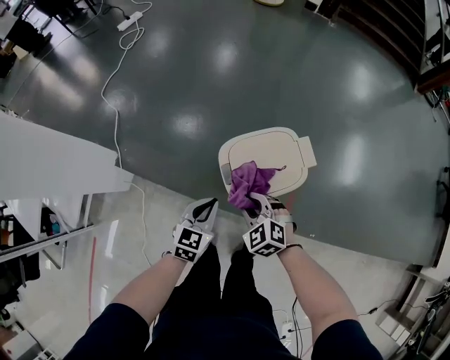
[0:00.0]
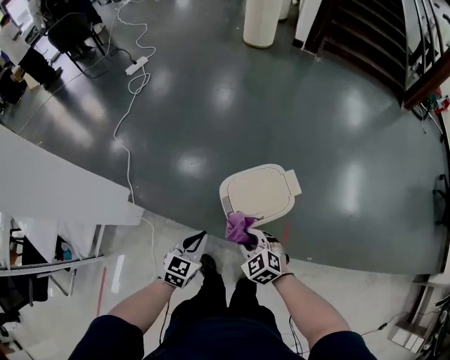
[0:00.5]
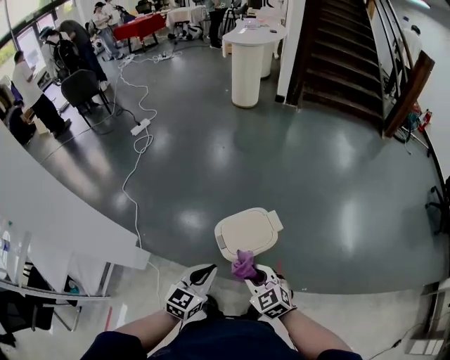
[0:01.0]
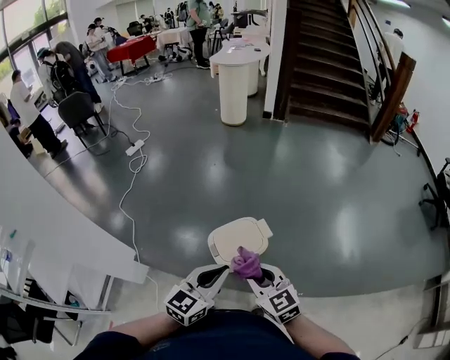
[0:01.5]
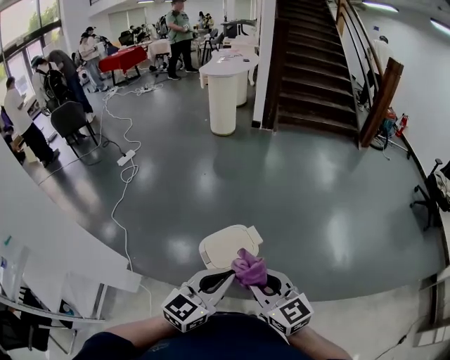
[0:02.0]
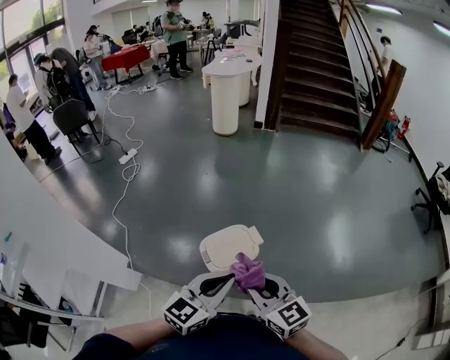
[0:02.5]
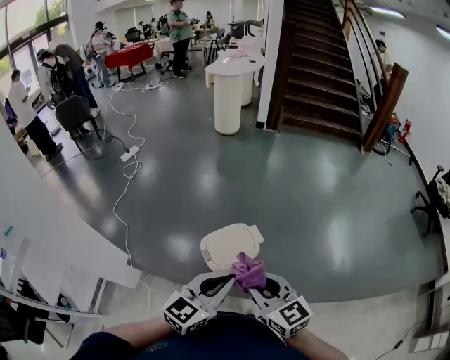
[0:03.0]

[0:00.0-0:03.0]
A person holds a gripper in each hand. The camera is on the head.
0:00.0 to 0:01.5: The grippers both shift upward by roughly 35 cm. The left gripper rotates approximately 30 degrees; the right gripper changes its angle by roughly 40 degrees.
0:01.5 to 0:03.0: The left gripper ends up some 5 cm from where it was. The right gripper goes roughly 5 cm upward.

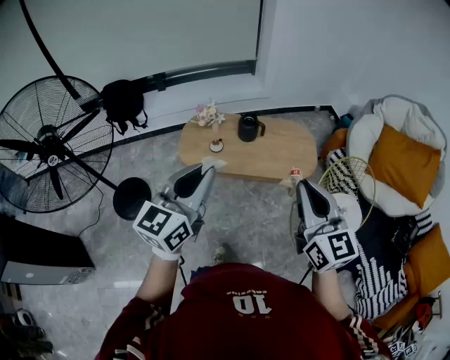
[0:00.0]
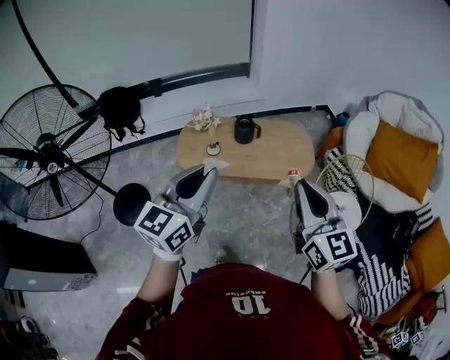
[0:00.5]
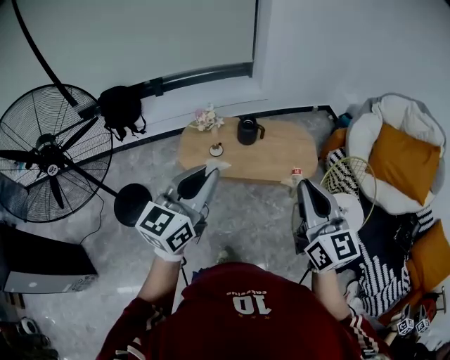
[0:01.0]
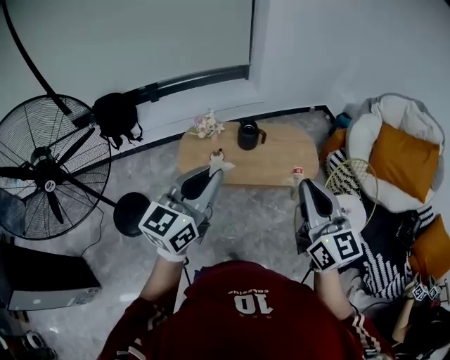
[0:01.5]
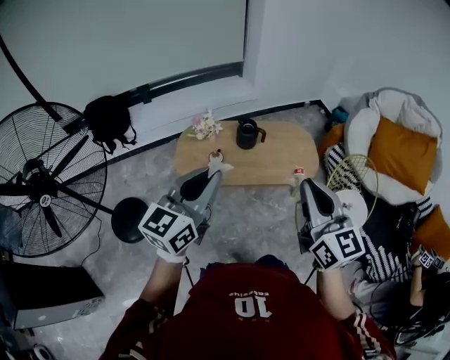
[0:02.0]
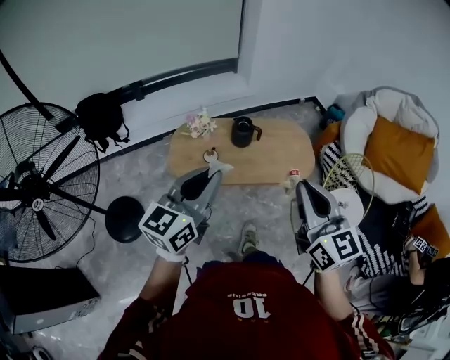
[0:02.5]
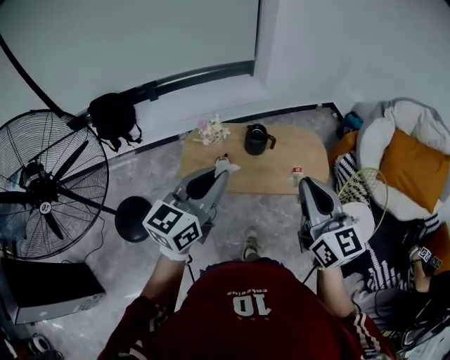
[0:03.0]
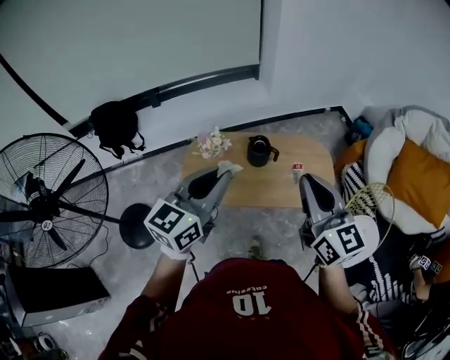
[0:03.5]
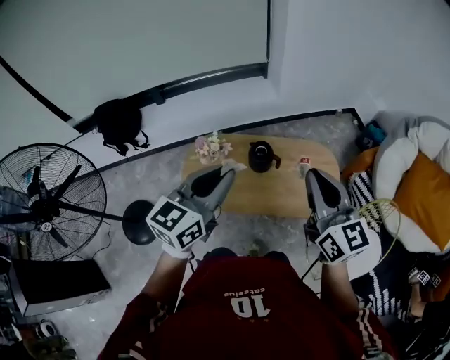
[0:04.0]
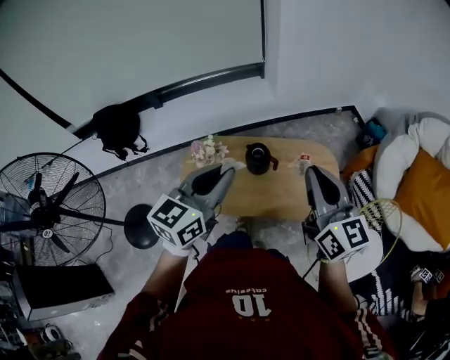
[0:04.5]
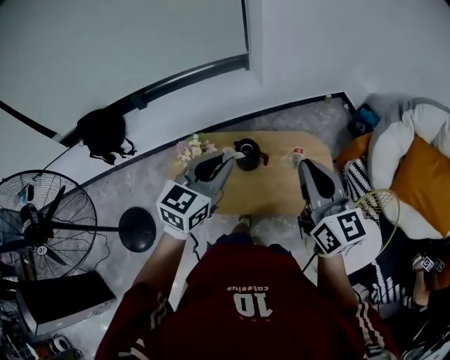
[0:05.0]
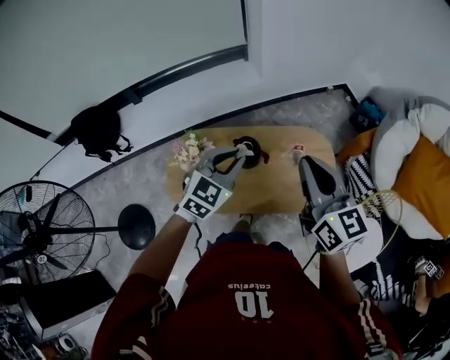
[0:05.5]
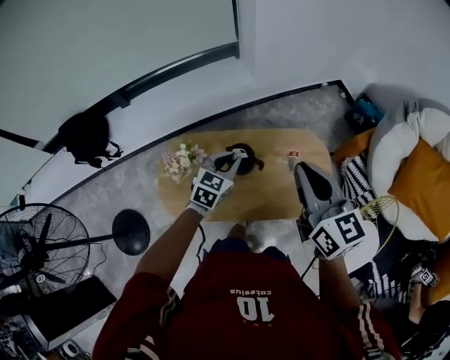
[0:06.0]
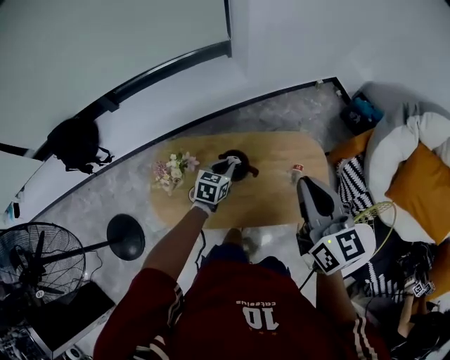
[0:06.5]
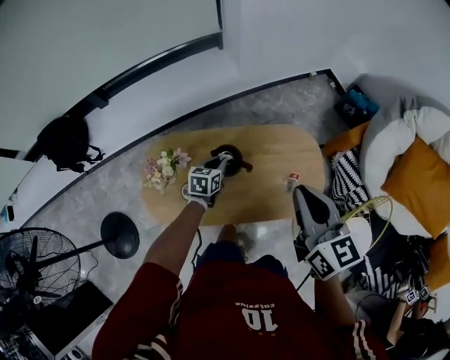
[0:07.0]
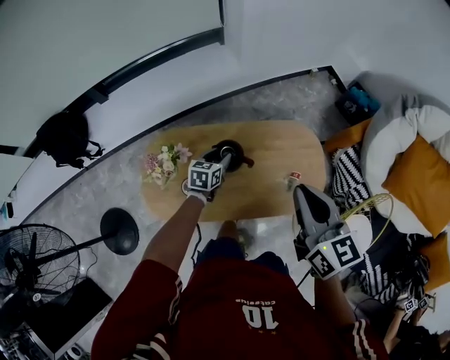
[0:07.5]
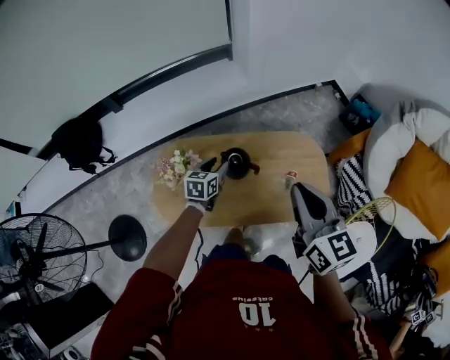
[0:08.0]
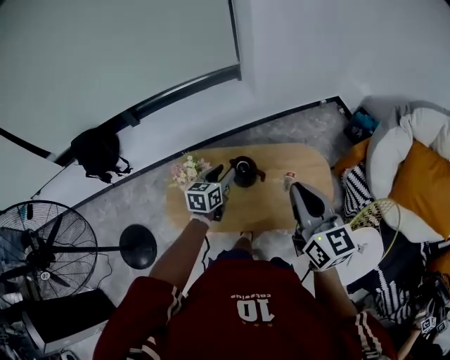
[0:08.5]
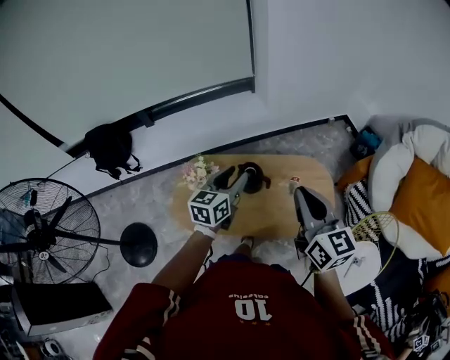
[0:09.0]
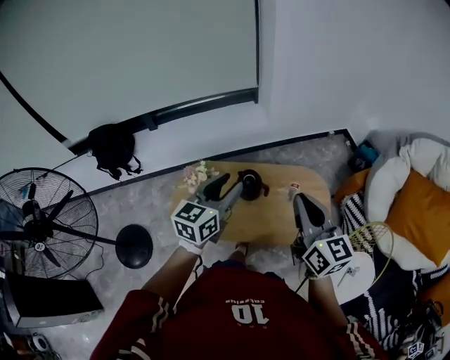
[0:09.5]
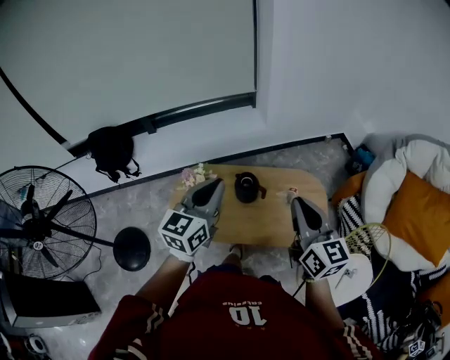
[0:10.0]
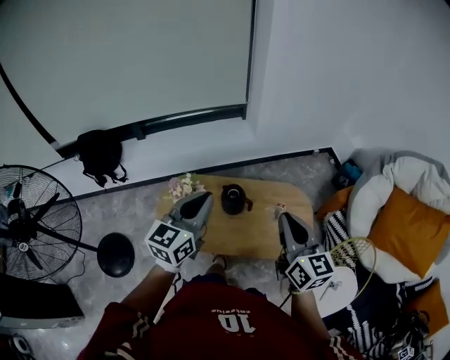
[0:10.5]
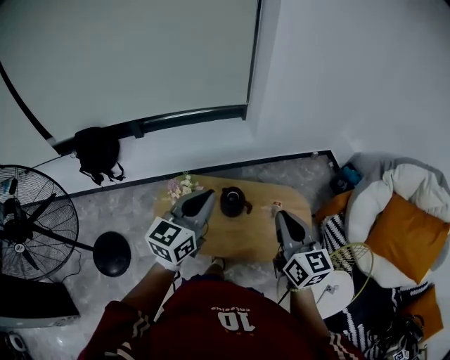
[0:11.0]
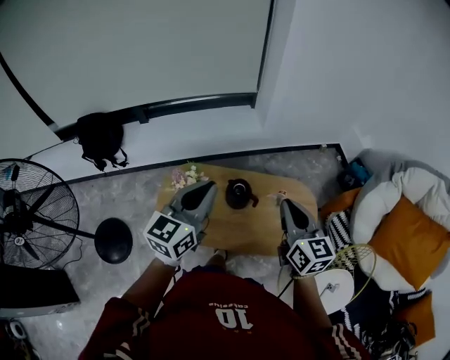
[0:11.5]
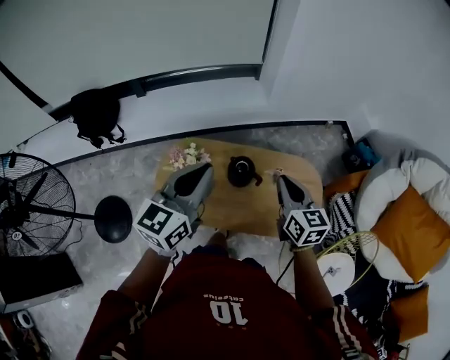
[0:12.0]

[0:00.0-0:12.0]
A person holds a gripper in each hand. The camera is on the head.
0:00.0 to 0:02.0: The right gripper travels to the left and forward by some 10 cm; the left gripper shifts some 10 cm forward and to the left.
0:02.0 to 0:04.0: The grippers both shift forward by roughly 30 cm.
0:04.0 to 0:06.0: The left gripper is displaced downward and forward by roughly 35 cm, and swivels some 30 degrees. Meanwhile the right gripper goes roughly 15 cm forward and downward.
0:06.0 to 0:08.0: The left gripper shifts roughly 10 cm downward, turns by roughly 30 degrees, and opens.
0:08.0 to 0:10.0: The left gripper travels upward and backward by about 40 cm, tips its fingers upward by some 30 degrees, and closes. Meanwhile the right gripper heads backward and upward, covering roughly 10 cm.
0:10.0 to 0:12.0: The right gripper is displaced forward and downward by about 20 cm. The left gripper is displaced forward by approximately 5 cm.

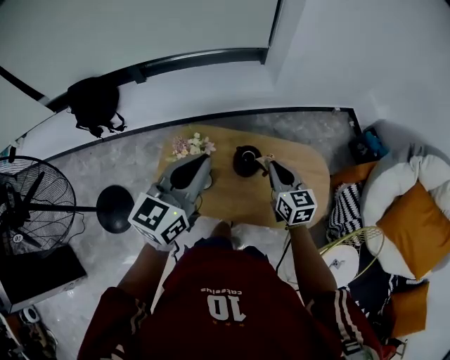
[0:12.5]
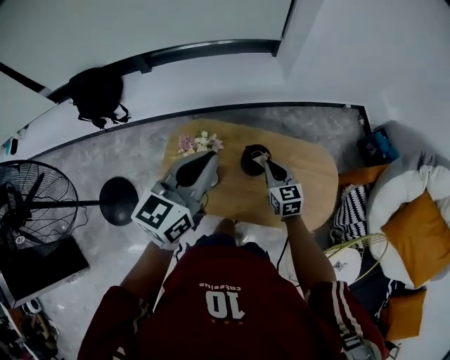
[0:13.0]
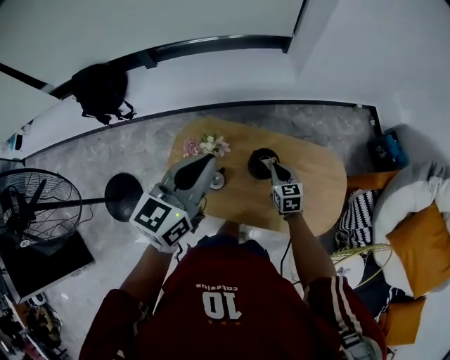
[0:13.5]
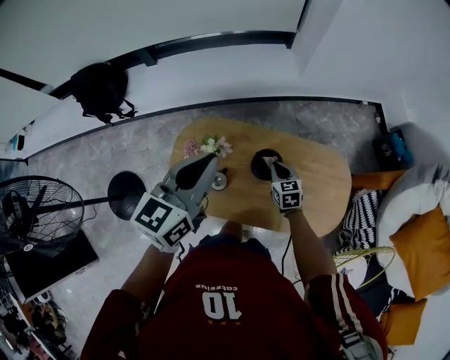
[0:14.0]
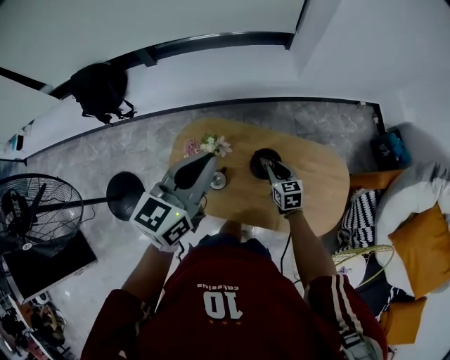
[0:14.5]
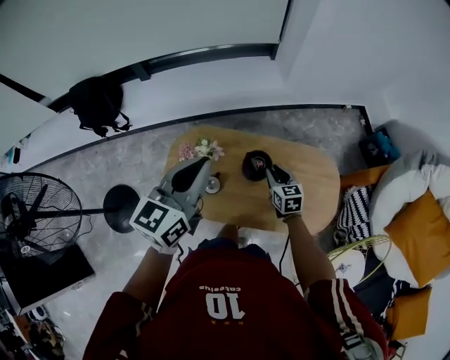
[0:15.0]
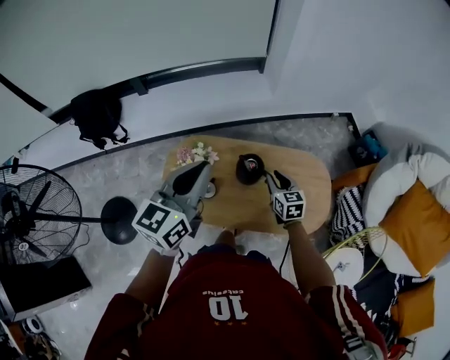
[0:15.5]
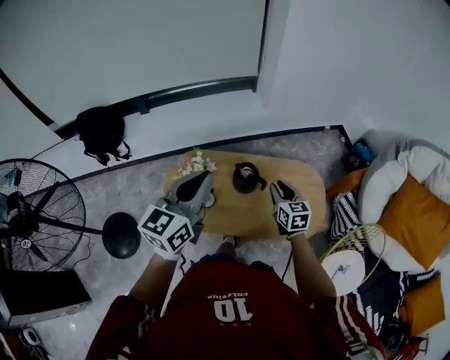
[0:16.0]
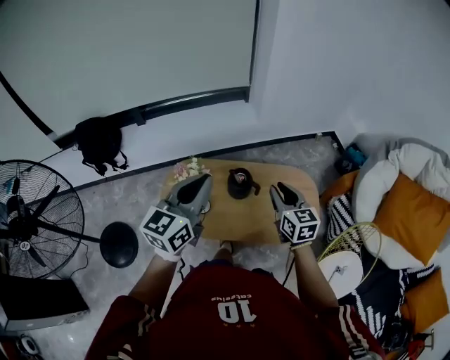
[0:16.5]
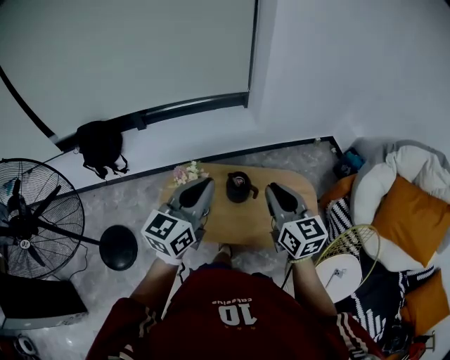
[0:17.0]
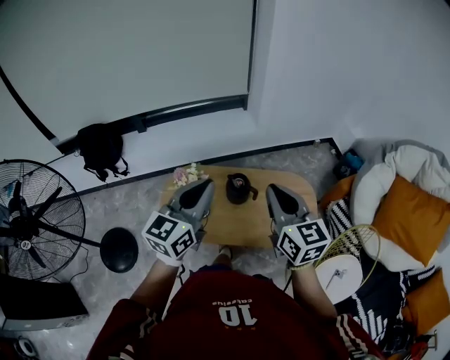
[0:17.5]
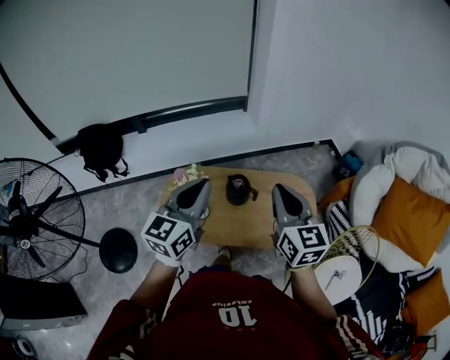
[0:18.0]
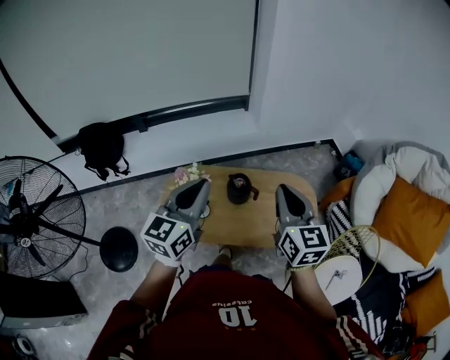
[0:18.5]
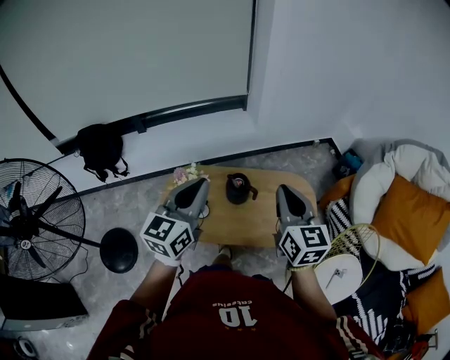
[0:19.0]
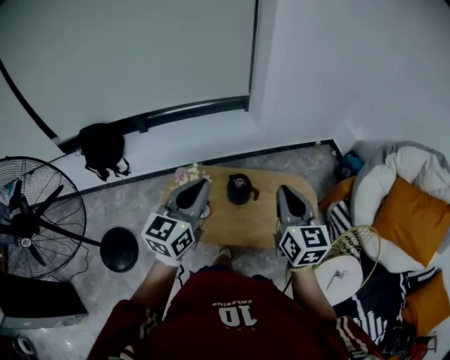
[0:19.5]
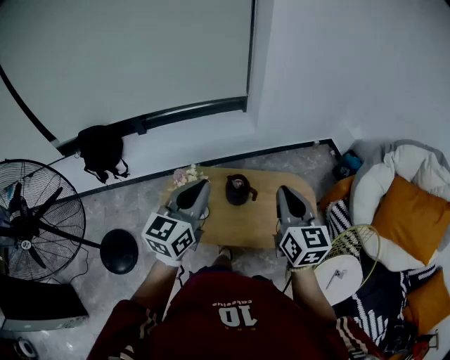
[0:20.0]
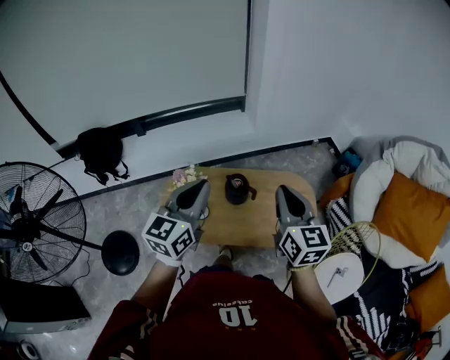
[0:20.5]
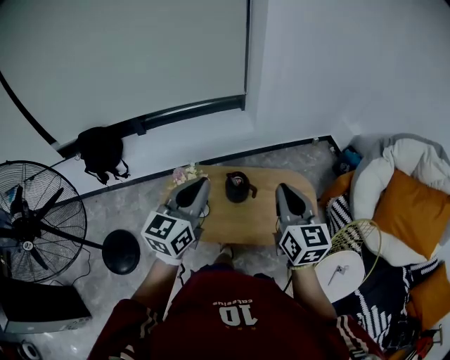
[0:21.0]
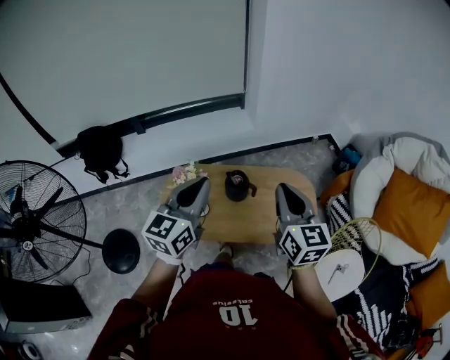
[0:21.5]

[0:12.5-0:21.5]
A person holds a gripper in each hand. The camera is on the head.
0:12.5 to 0:14.5: The left gripper heads forward and downward, covering roughly 10 cm. The right gripper heads downward, covering about 20 cm, rotates some 20 degrees, and opens its fingers.
0:14.5 to 0:17.0: The left gripper is displaced backward, upward and to the right by some 25 cm. Meanwhile the right gripper goes roughly 50 cm upward and backward, and tilts its fingers roughly 30 degrees upward.
0:17.0 to 0:21.5: The grippers stay close to where they were, moving slightly.

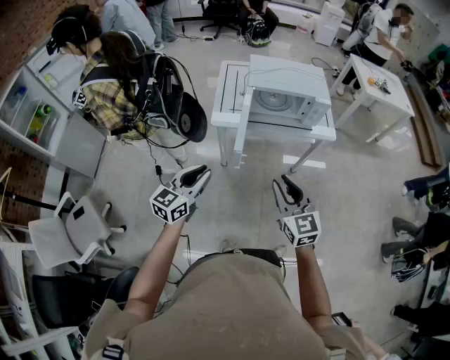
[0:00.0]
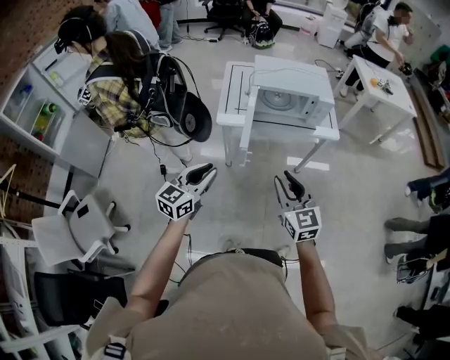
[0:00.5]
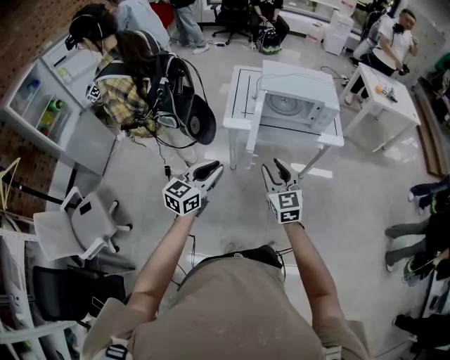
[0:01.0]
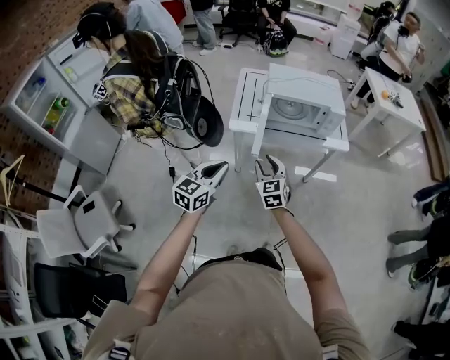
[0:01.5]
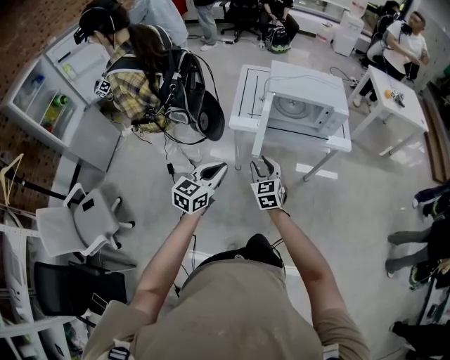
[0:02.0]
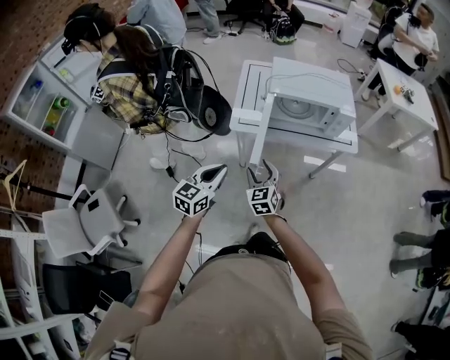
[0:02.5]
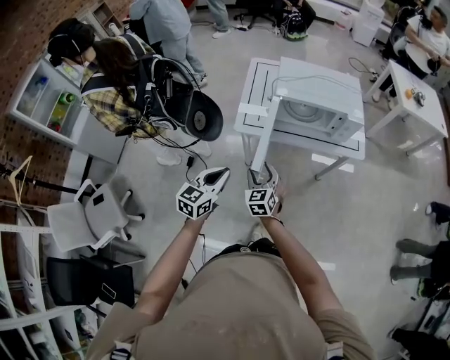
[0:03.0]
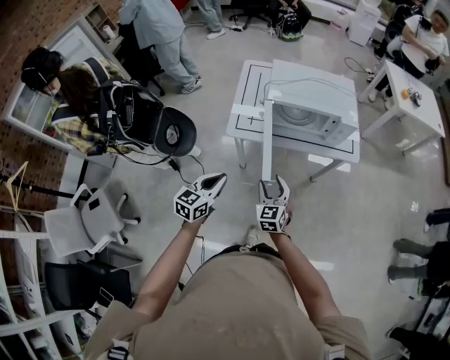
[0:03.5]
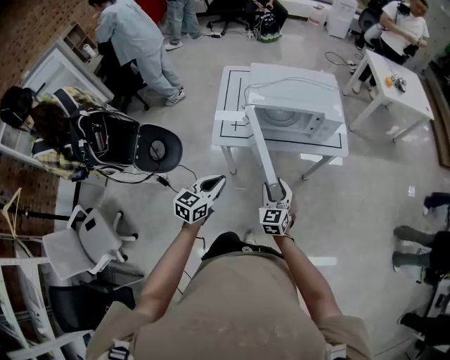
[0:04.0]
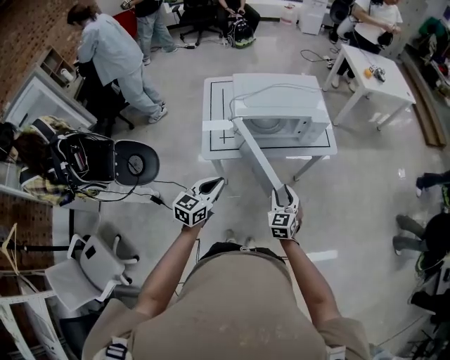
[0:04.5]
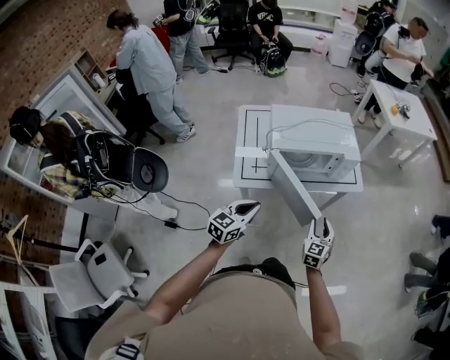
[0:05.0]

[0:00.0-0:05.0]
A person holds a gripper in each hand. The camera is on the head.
0:00.0 to 0:02.5: The left gripper moves forward, some 10 cm; the right gripper is displaced downward, forward and to the left by roughly 25 cm, and opens its fingers.
0:02.5 to 0:05.0: The left gripper ends up roughly 15 cm from where it was. Meanwhile the right gripper moves approximately 25 cm, and swivels roughly 30 degrees.
